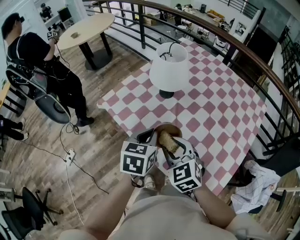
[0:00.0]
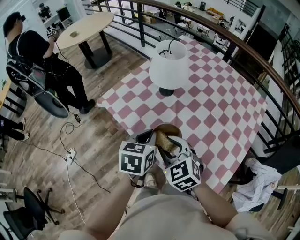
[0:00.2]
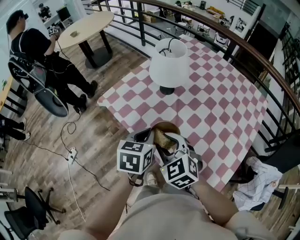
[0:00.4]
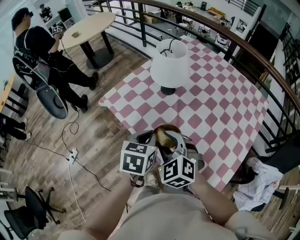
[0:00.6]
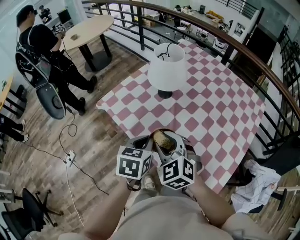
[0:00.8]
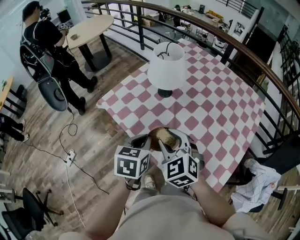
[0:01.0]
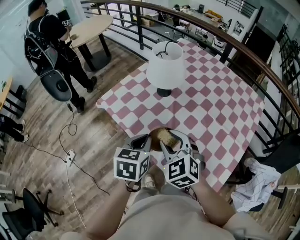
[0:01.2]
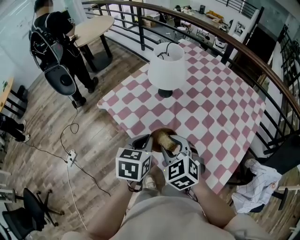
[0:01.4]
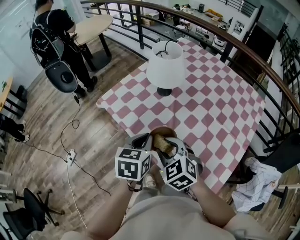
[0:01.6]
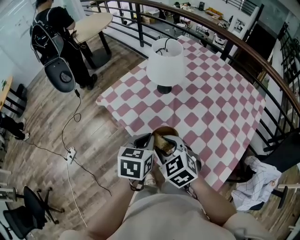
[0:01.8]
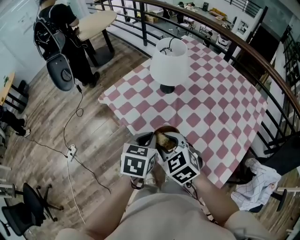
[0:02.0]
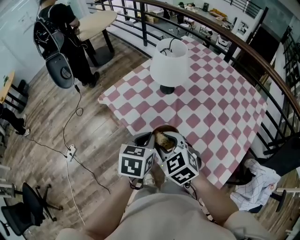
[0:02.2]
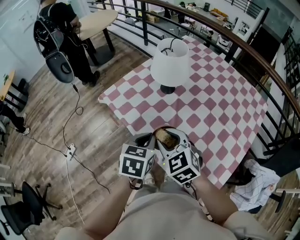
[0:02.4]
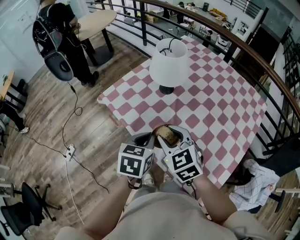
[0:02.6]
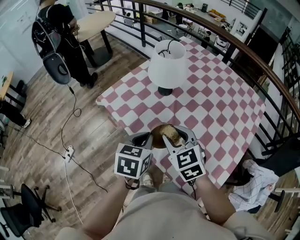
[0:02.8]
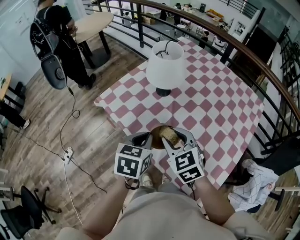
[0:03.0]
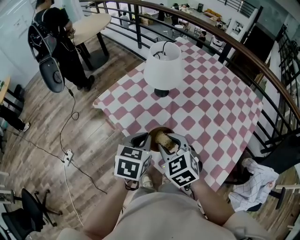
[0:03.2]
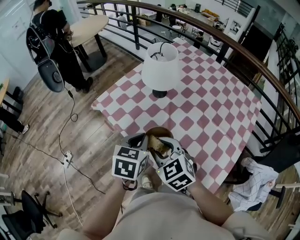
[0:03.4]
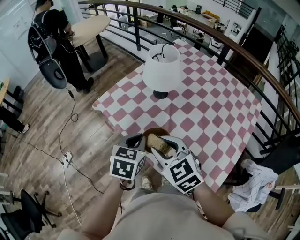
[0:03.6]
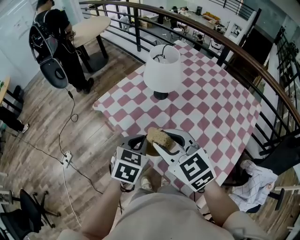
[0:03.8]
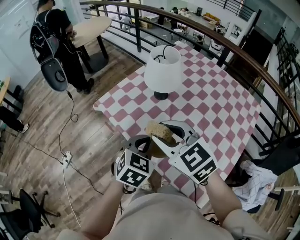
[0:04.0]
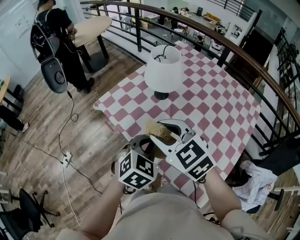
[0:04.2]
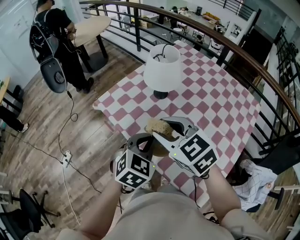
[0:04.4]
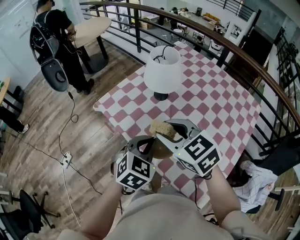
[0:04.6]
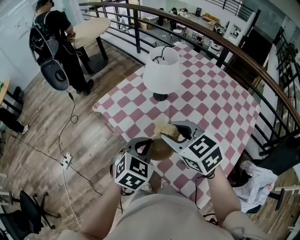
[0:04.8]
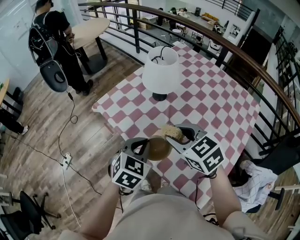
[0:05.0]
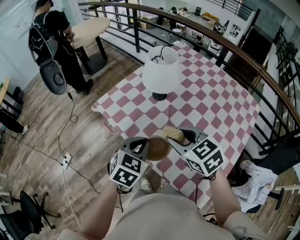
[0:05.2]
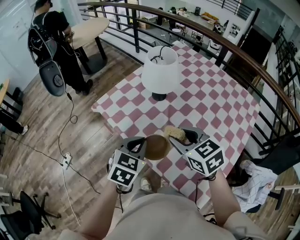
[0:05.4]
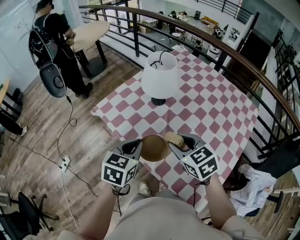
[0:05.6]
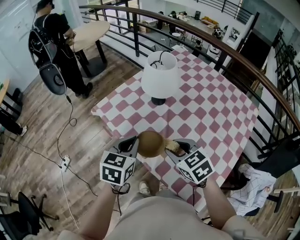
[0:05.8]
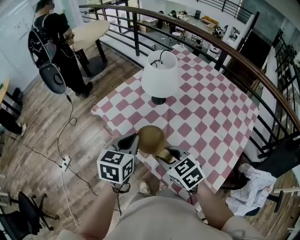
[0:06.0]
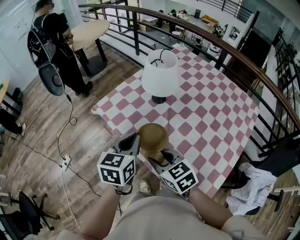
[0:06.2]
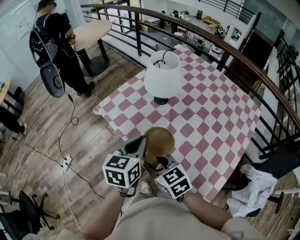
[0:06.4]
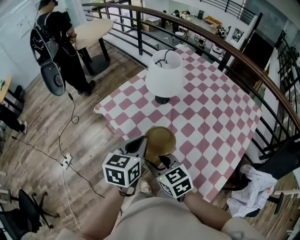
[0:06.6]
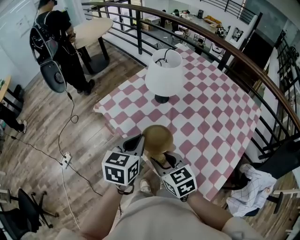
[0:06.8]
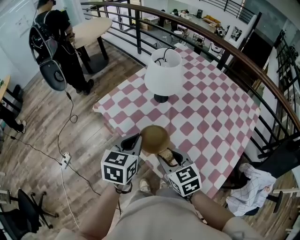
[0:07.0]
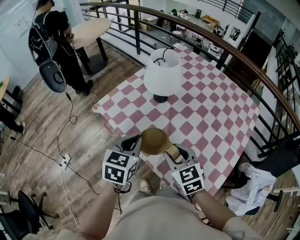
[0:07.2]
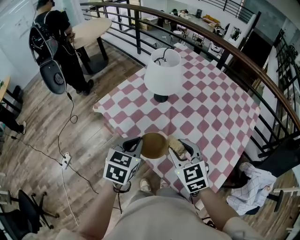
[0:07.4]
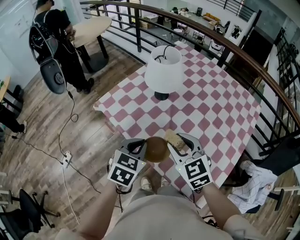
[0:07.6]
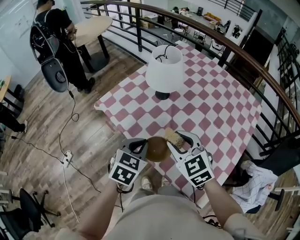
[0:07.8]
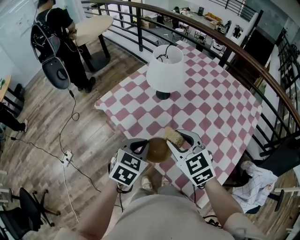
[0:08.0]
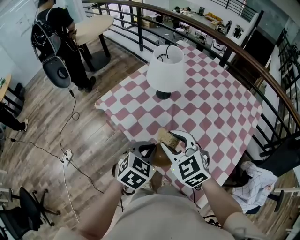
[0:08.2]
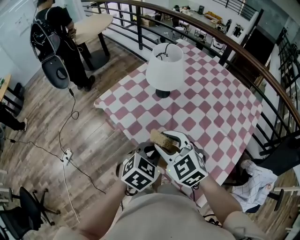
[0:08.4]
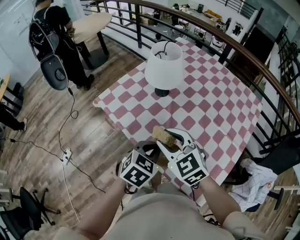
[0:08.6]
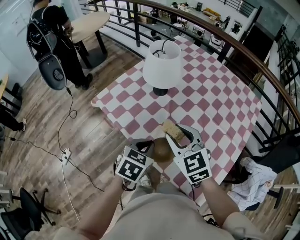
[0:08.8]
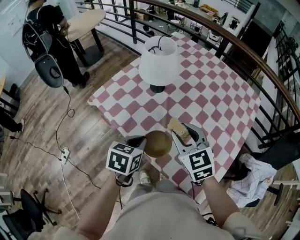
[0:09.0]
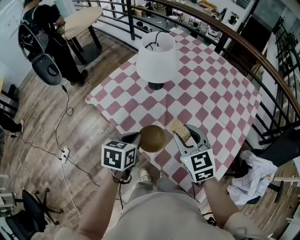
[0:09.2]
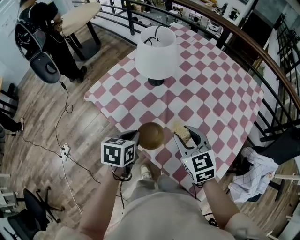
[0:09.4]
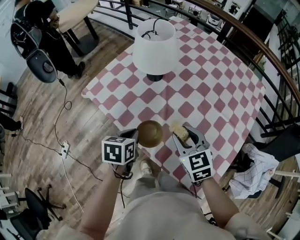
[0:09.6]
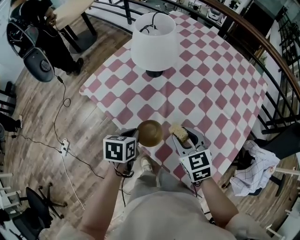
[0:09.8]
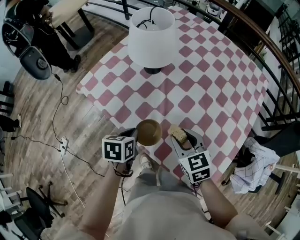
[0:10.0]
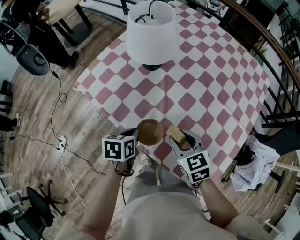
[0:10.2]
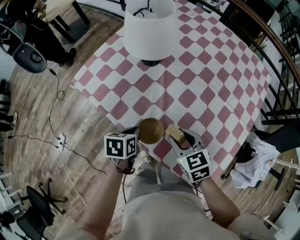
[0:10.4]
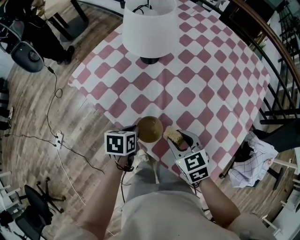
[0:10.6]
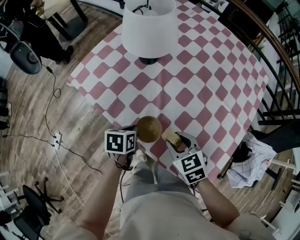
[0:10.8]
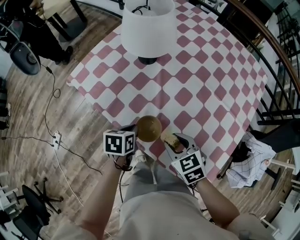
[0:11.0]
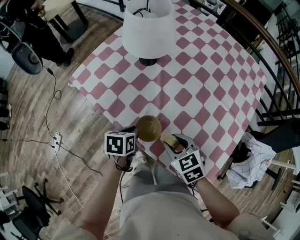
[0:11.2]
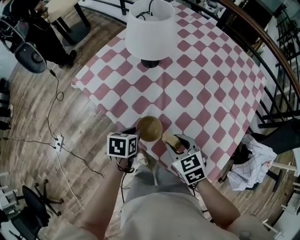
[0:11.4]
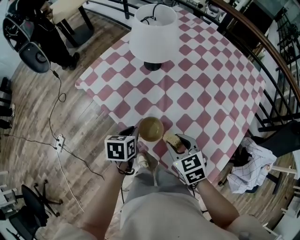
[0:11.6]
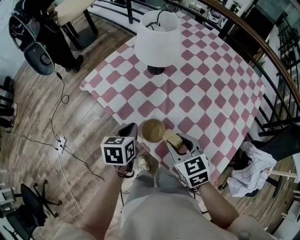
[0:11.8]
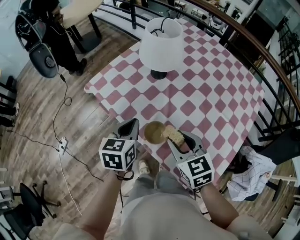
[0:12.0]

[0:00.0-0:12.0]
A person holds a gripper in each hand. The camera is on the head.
0:00.0 to 0:01.6: There are only small adjustments of the grippers.
0:01.6 to 0:03.0: The right gripper shifts by about 5 cm.
0:03.0 to 0:04.4: The right gripper goes some 10 cm upward. Meanwhile the left gripper turns by some 30 degrees.
0:04.4 to 0:06.0: The left gripper travels to the left by approximately 5 cm, and turns by roughly 30 degrees; the right gripper heads downward, covering some 10 cm.
0:06.0 to 0:07.6: The left gripper ends up approximately 5 cm from where it was, and turns by some 20 degrees, while the right gripper travels to the left and back again, about 5 cm each way, and rotates about 20 degrees.
0:09.0 to 0:10.4: Both grippers move downward, about 15 cm. The left gripper changes its angle by about 20 degrees; the right gripper changes its angle by roughly 20 degrees.
0:10.4 to 0:12.0: The grippers both shift upward by roughly 15 cm. The left gripper turns by approximately 30 degrees.

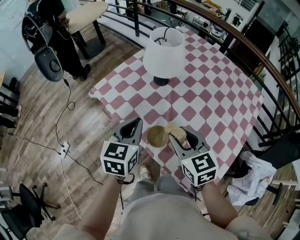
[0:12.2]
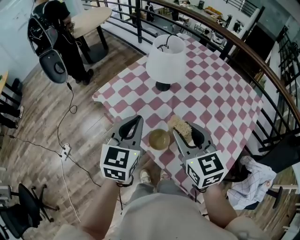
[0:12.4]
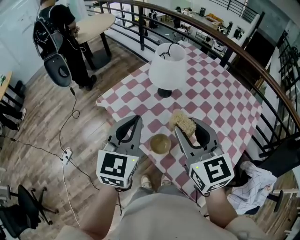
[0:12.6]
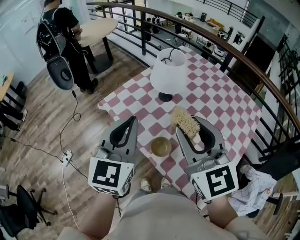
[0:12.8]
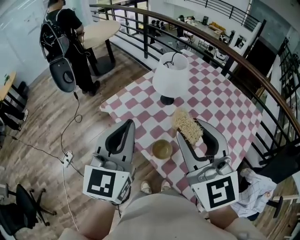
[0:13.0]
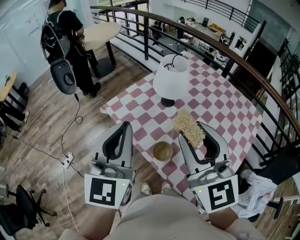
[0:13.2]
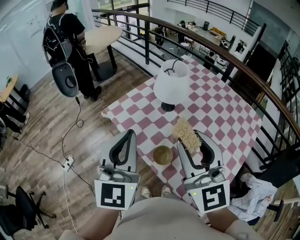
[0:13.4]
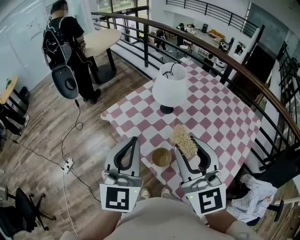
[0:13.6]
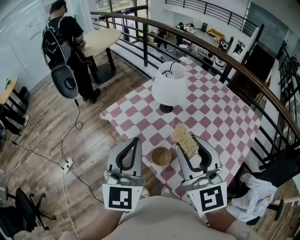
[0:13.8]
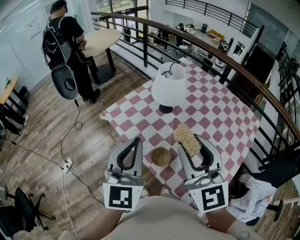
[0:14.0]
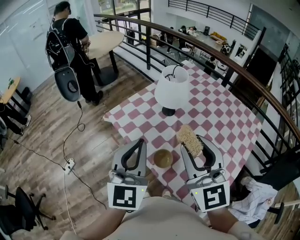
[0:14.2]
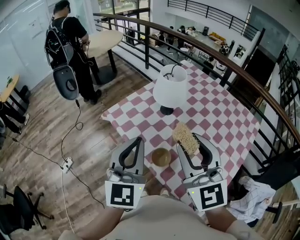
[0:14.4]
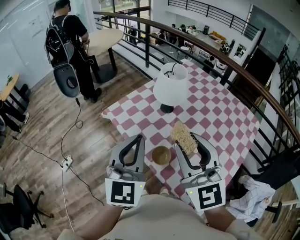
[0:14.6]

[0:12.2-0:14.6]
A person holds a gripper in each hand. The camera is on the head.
0:12.2 to 0:13.4: Both grippers travel together upward, about 20 cm. The right gripper tilts its fingers about 30 degrees upward; the left gripper turns by approximately 40 degrees.
0:13.4 to 0:14.6: The grippers move only a little.

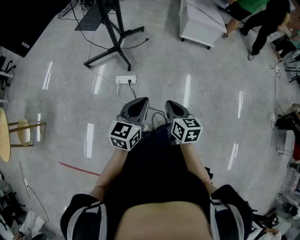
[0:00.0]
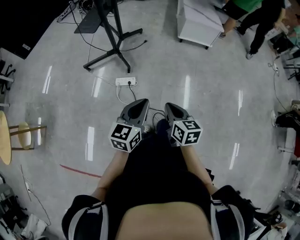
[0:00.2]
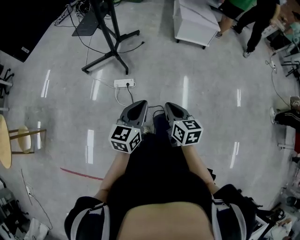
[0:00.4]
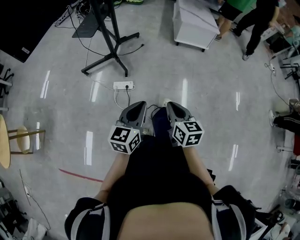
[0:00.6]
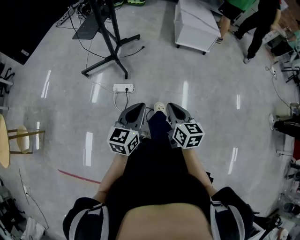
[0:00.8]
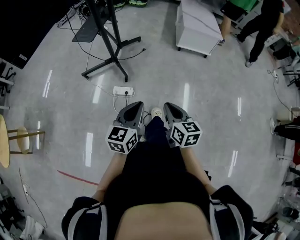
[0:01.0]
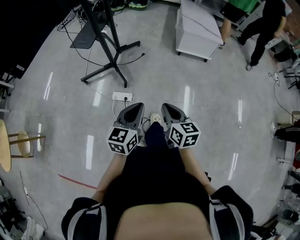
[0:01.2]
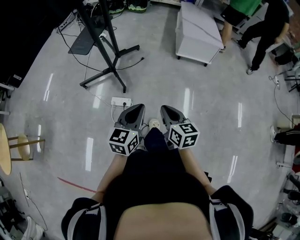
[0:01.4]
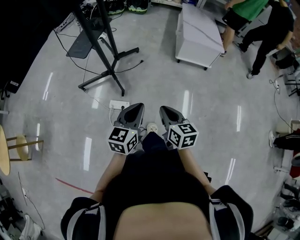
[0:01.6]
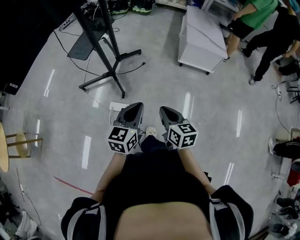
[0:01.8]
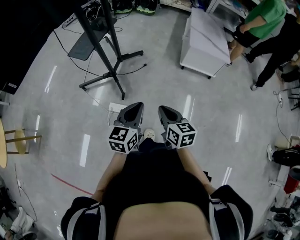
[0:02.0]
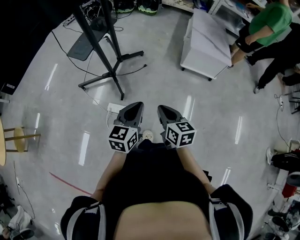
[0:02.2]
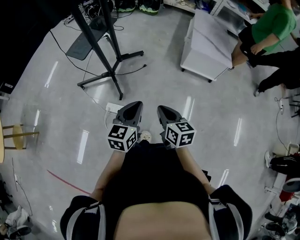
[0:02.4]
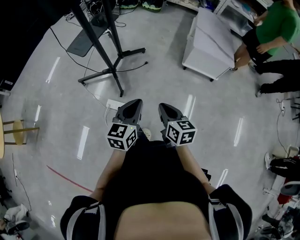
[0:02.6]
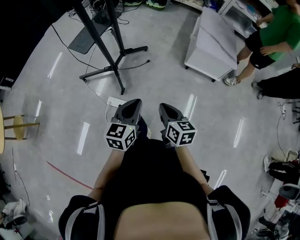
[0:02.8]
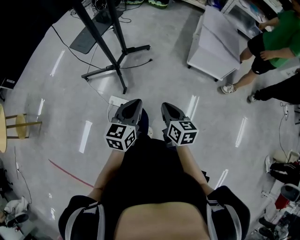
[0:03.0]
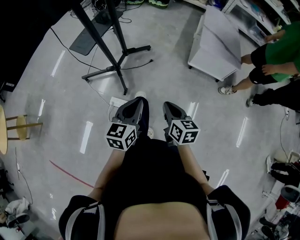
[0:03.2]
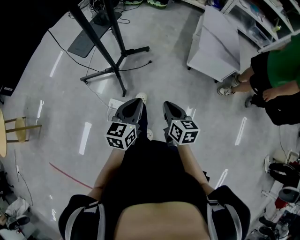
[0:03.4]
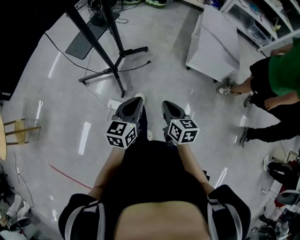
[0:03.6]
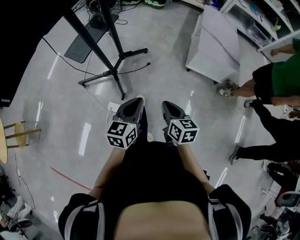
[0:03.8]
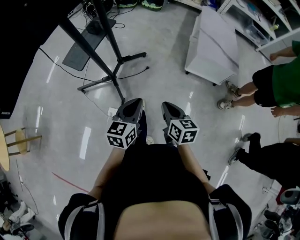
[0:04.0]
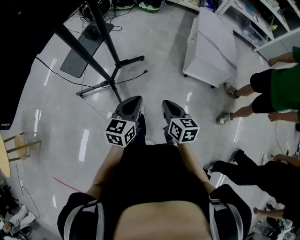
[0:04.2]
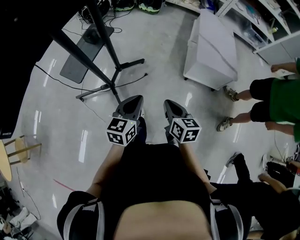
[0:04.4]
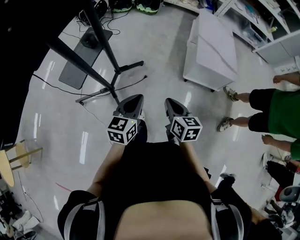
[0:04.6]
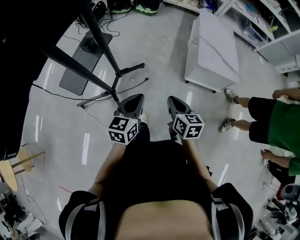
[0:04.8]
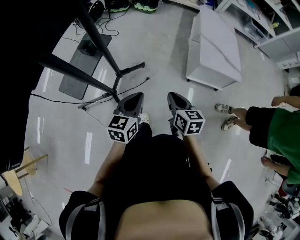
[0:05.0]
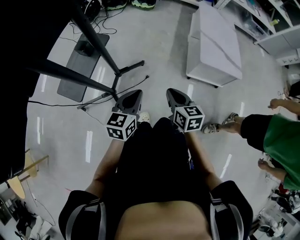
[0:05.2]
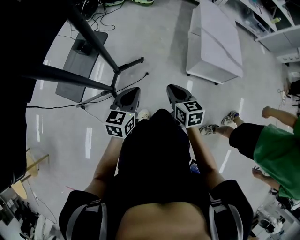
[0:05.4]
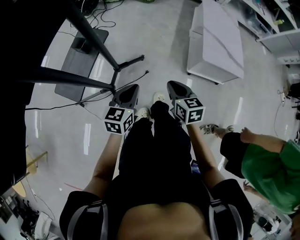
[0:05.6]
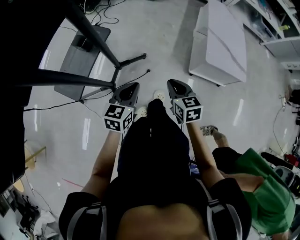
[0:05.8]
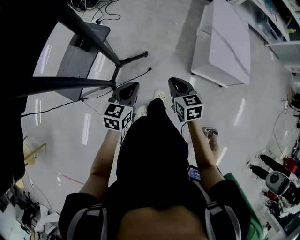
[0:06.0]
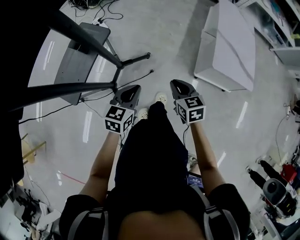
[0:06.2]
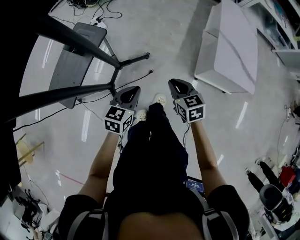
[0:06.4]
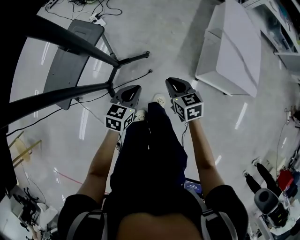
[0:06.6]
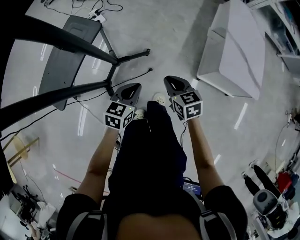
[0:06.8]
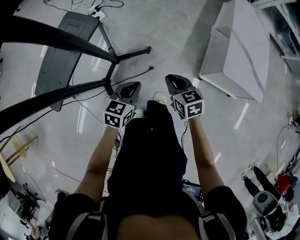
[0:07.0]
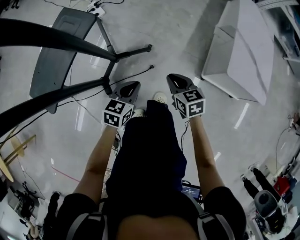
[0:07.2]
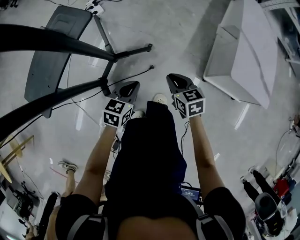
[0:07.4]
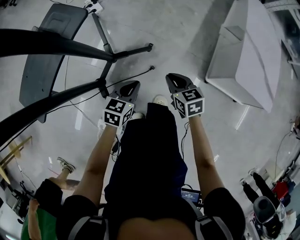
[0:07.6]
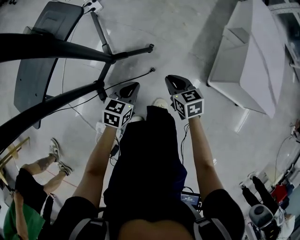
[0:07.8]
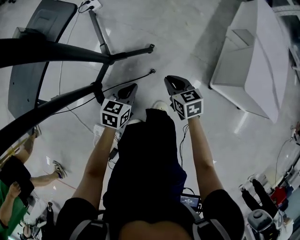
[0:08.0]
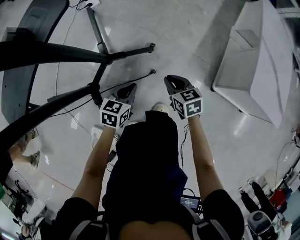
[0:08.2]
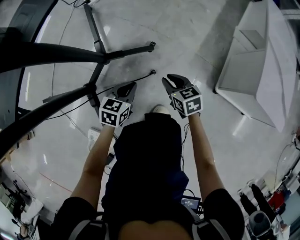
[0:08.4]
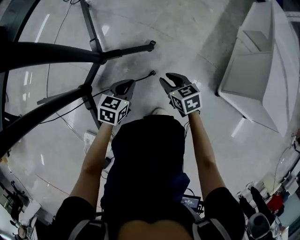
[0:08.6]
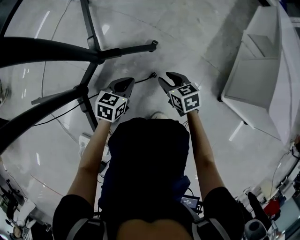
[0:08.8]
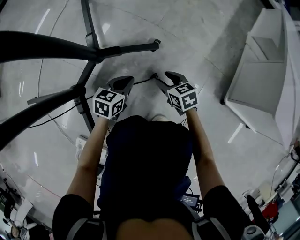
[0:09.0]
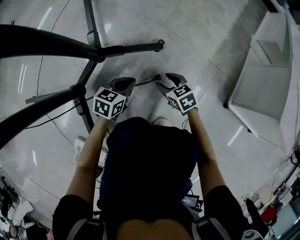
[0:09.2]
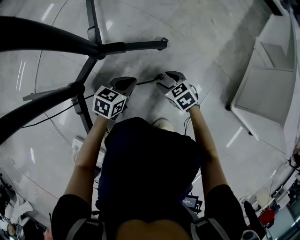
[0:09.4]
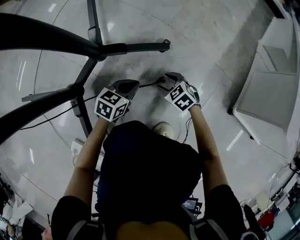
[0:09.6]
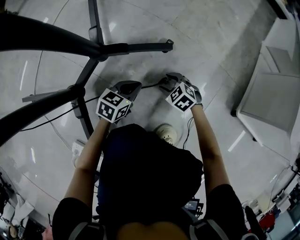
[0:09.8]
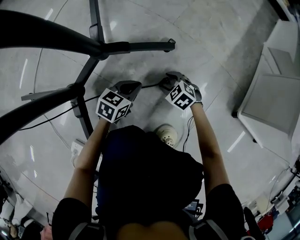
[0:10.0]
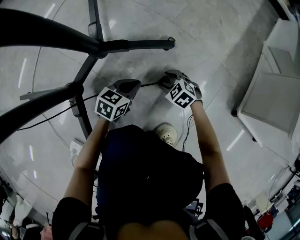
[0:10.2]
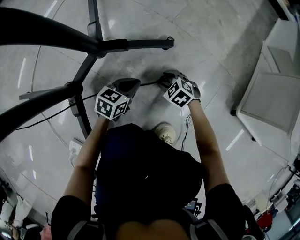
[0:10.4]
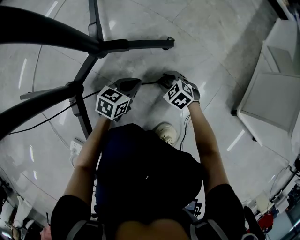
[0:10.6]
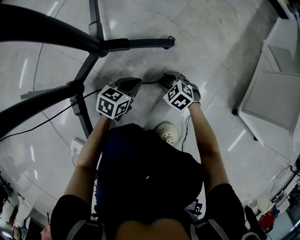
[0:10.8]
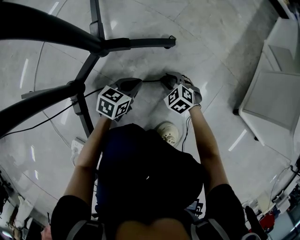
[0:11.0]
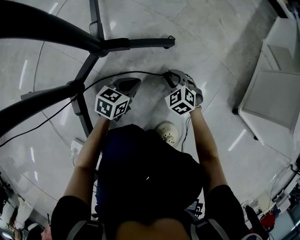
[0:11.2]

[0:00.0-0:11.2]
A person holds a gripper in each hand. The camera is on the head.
0:00.0 to 0:01.6: Both grippers move forward, about 20 cm.
0:01.6 to 0:03.2: The left gripper shifts approximately 15 cm forward, while the right gripper travels forward and to the right by about 15 cm.
0:03.2 to 0:04.8: Both grippers move forward, approximately 25 cm.
0:04.8 to 0:06.4: The grippers both shift forward and downward by roughly 25 cm. The right gripper swivels about 30 degrees.
0:06.4 to 0:08.0: The two grippers go about 35 cm downward.
0:08.0 to 0:09.6: The two grippers go roughly 35 cm downward. The right gripper changes its angle by roughly 40 degrees, and opens.
0:09.6 to 0:11.2: The right gripper closes.
